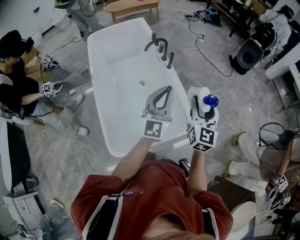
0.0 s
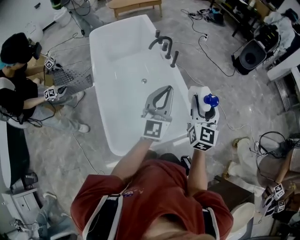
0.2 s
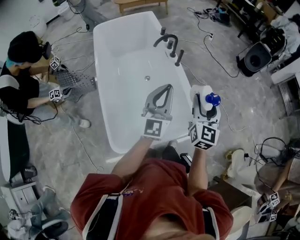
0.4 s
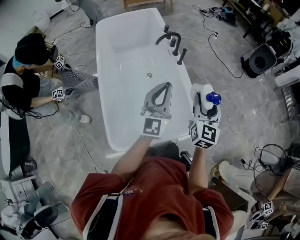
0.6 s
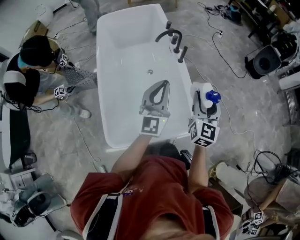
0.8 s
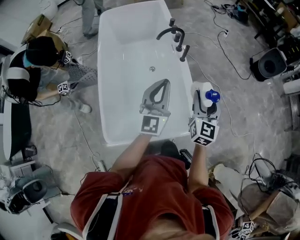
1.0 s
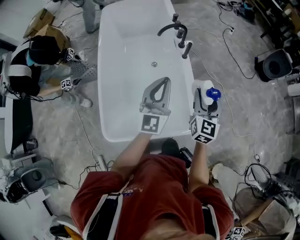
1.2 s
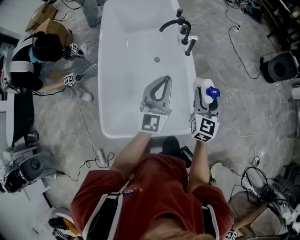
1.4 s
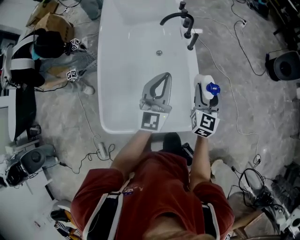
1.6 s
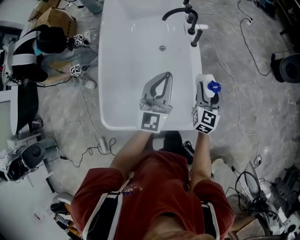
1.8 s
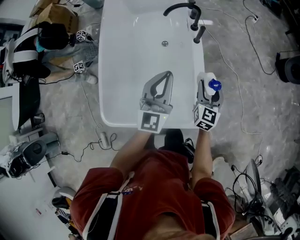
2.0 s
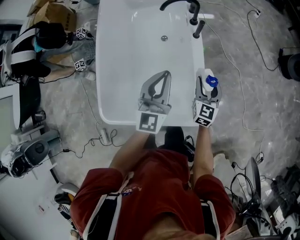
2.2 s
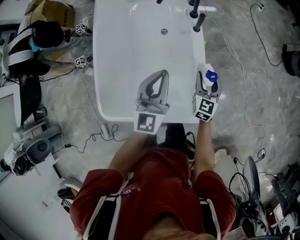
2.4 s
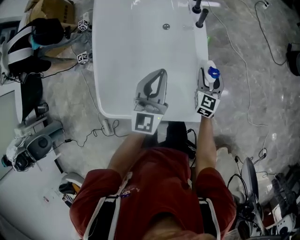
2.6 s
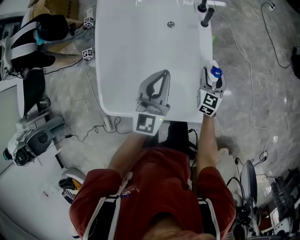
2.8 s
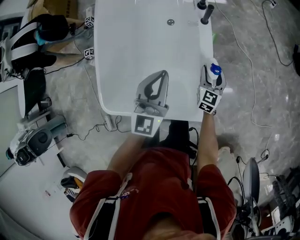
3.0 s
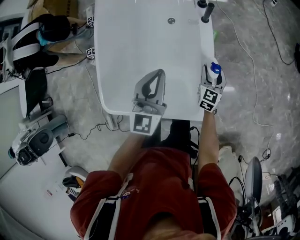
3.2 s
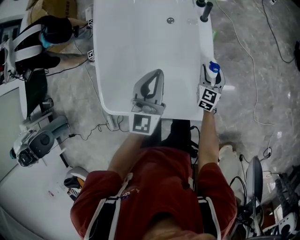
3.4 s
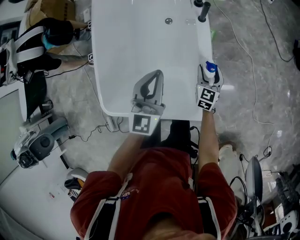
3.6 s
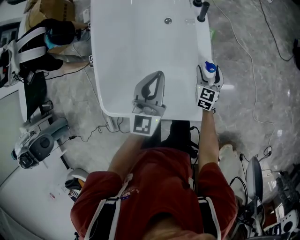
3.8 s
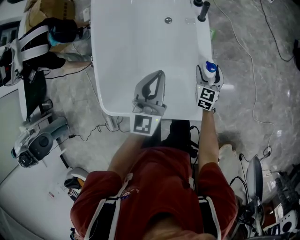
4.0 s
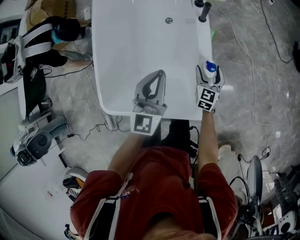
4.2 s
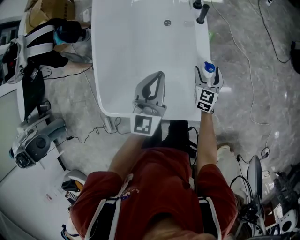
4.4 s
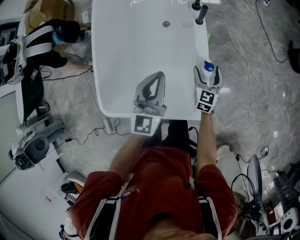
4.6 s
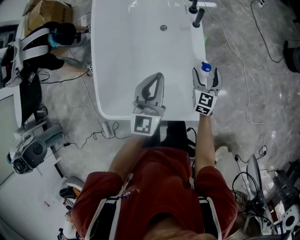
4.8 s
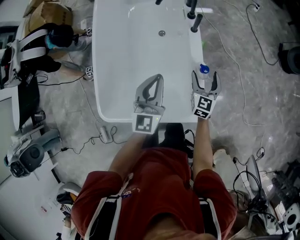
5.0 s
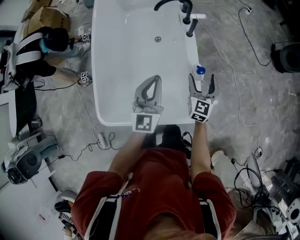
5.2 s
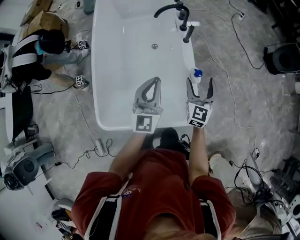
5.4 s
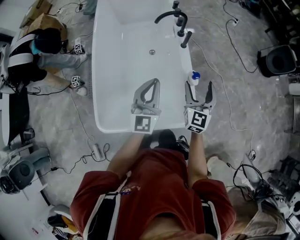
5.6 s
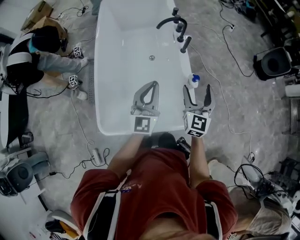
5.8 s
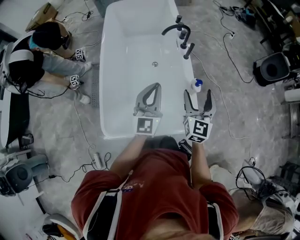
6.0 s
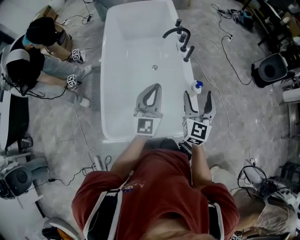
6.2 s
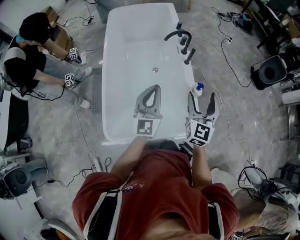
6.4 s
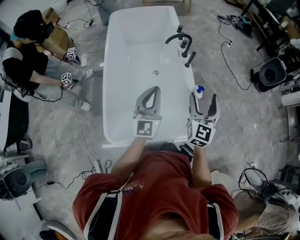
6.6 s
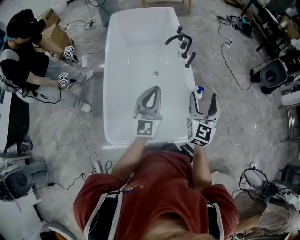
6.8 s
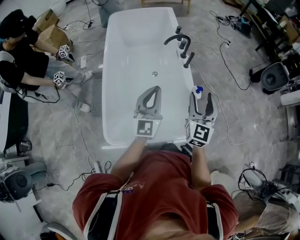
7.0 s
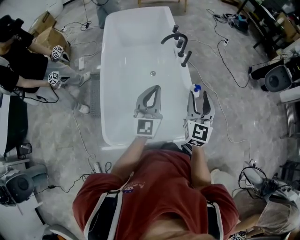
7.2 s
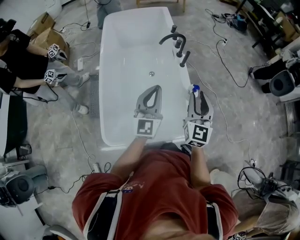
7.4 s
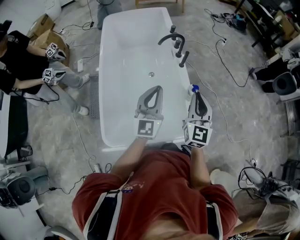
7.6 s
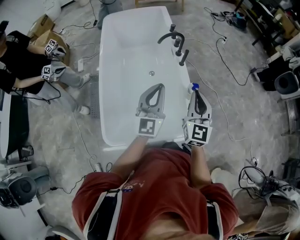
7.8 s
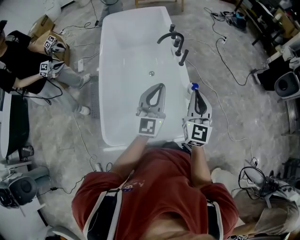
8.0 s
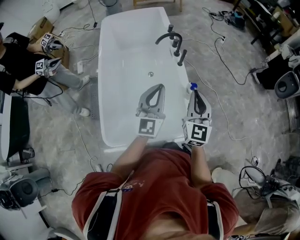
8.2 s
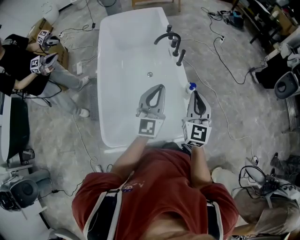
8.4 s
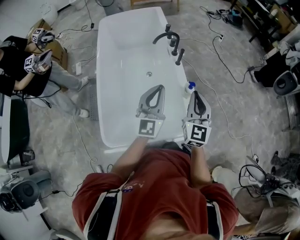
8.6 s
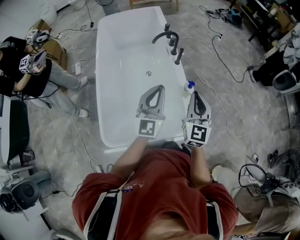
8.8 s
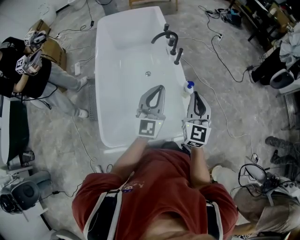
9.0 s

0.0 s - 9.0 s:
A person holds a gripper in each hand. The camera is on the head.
0.0 s - 1.6 s: The left gripper shifts approximately 15 cm forward and downward, and rotates some 20 degrees; the right gripper moves forward and downward, approximately 25 cm.
1.6 s - 3.0 s: The right gripper goes some 25 cm downward; the left gripper travels downward by approximately 10 cm.
3.0 s - 4.4 s: The grippers move only a little.
4.4 s - 6.0 s: The left gripper travels upward, to the left and backward by approximately 15 cm; the right gripper shifts some 35 cm upward and backward, and swivels about 20 degrees.
6.0 s - 7.6 s: The right gripper heads upward, covering some 5 cm, and closes up.
7.6 s - 9.0 s: The grippers make only small movements.

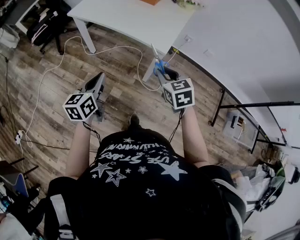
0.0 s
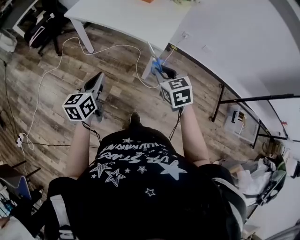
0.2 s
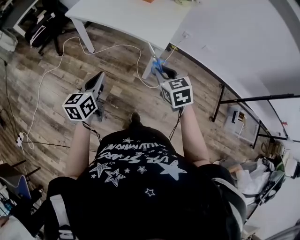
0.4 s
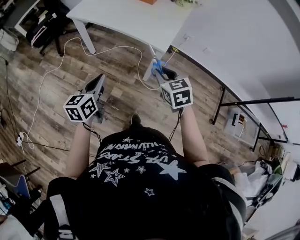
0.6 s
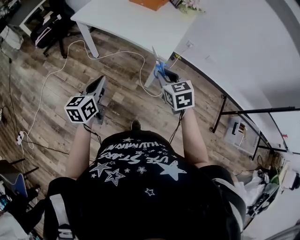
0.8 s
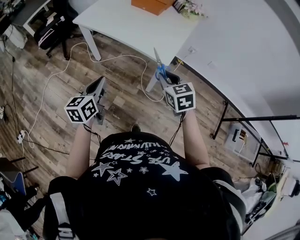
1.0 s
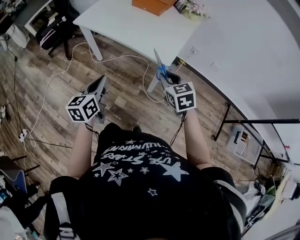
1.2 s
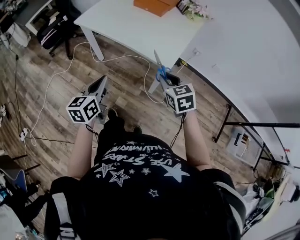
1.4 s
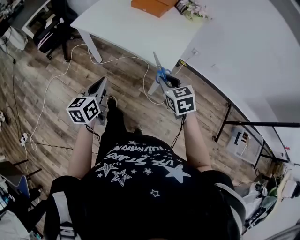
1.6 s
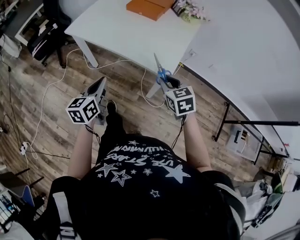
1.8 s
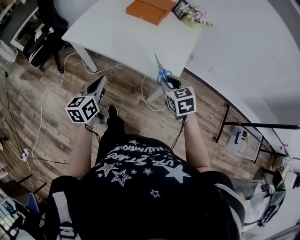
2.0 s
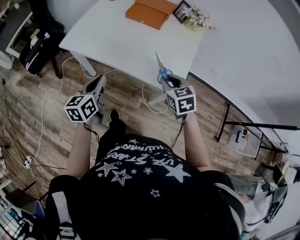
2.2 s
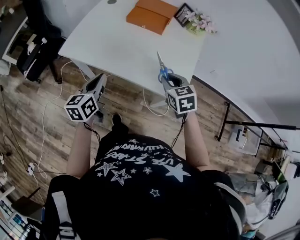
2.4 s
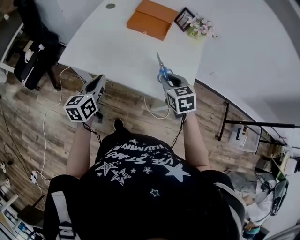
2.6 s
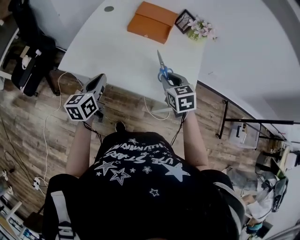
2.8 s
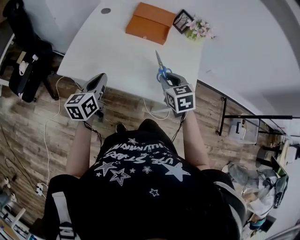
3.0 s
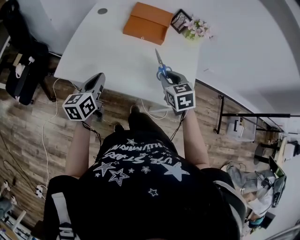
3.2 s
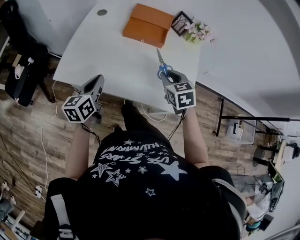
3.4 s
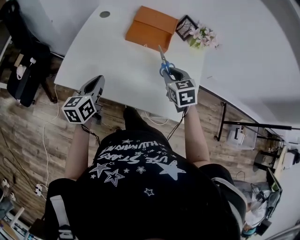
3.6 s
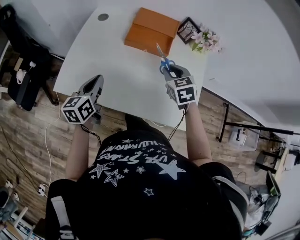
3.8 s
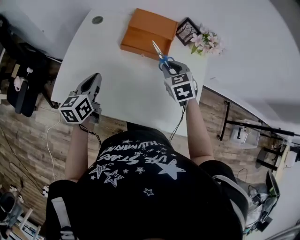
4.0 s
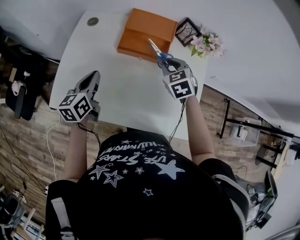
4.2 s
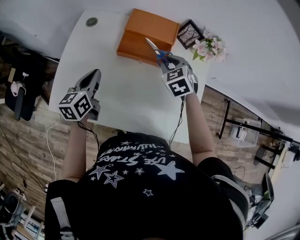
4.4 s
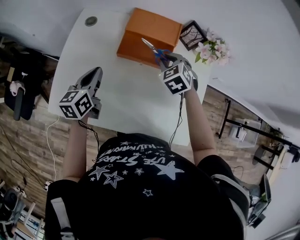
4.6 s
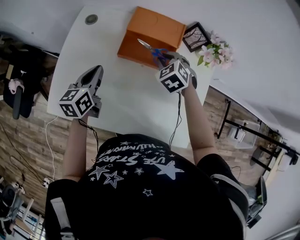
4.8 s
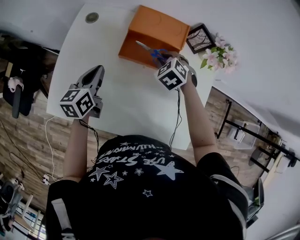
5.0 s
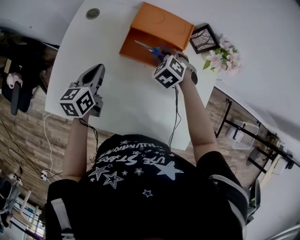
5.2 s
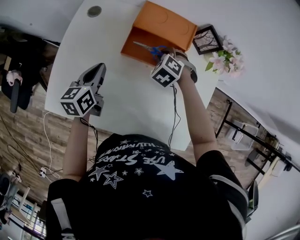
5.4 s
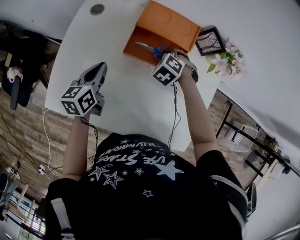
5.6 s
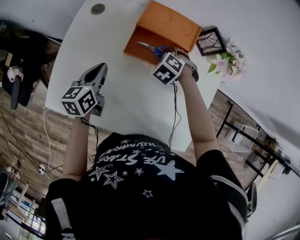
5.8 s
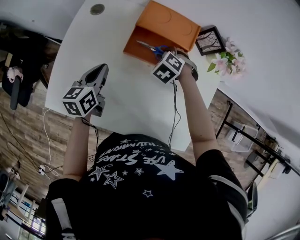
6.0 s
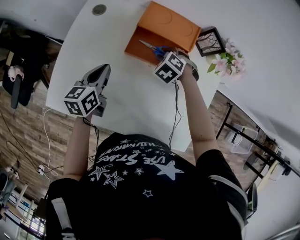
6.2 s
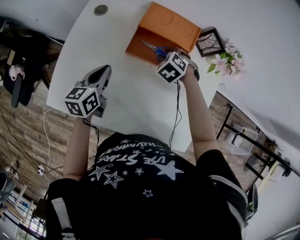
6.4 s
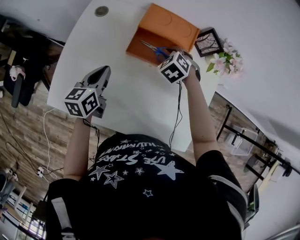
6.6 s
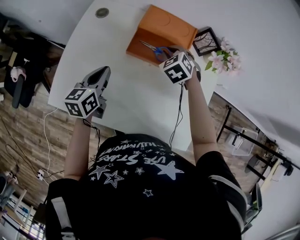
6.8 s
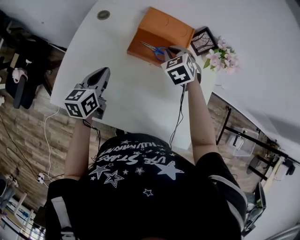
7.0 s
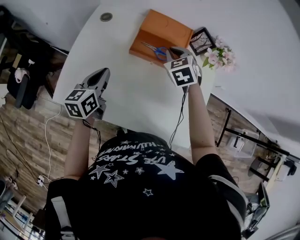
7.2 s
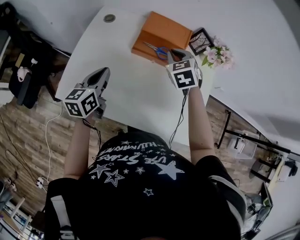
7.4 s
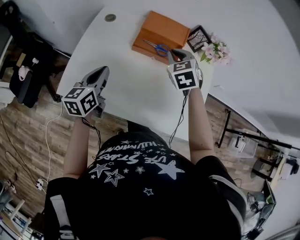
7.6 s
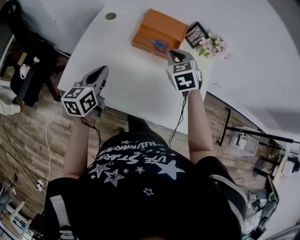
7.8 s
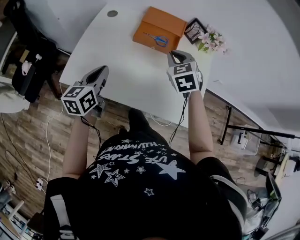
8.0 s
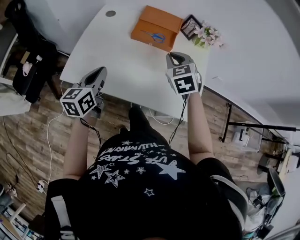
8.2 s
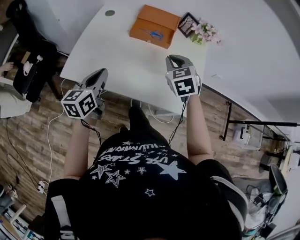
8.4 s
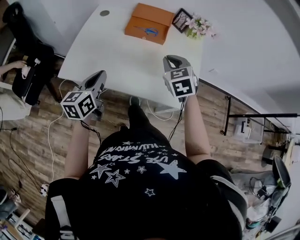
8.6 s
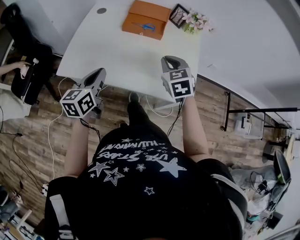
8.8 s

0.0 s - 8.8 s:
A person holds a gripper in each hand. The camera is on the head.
0.0 s - 1.4 s: Both grippers travel together forward, some 10 cm.
1.4 s - 3.0 s: The two grippers go roughly 40 cm forward and to the left. The right gripper swivels about 20 degrees.
3.0 s - 4.4 s: Both grippers move forward, approximately 25 cm.
4.4 s - 5.8 s: The right gripper is displaced downward, forward and to the left by some 15 cm, and rotates approximately 30 degrees, while the left gripper shifts some 10 cm downward and forward.
5.8 s - 7.4 s: The left gripper travels backward and upward by approximately 15 cm. Meanwhile the right gripper goes roughly 15 cm upward and backward, and turns by some 40 degrees.
7.4 s - 8.8 s: The grippers both shift backward by about 25 cm.

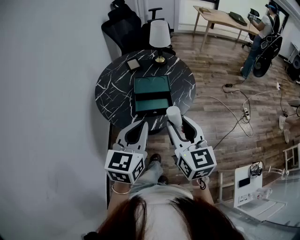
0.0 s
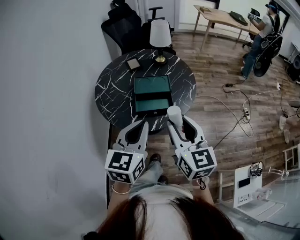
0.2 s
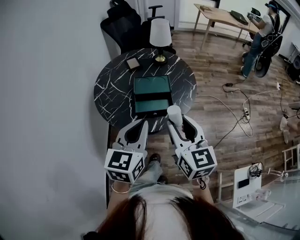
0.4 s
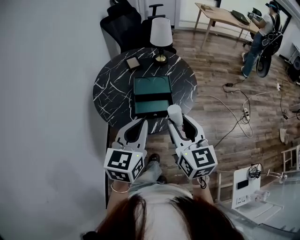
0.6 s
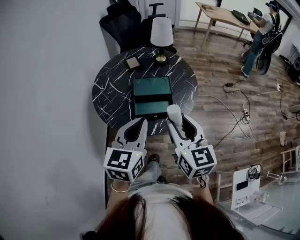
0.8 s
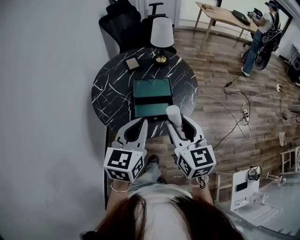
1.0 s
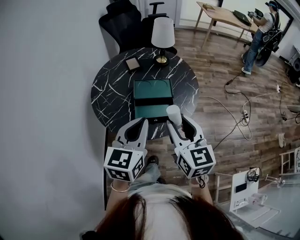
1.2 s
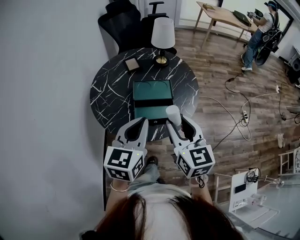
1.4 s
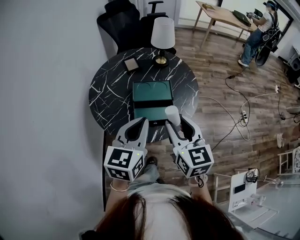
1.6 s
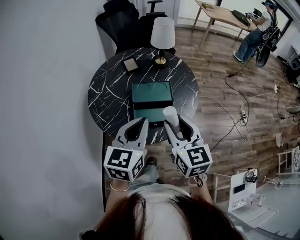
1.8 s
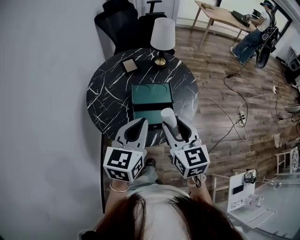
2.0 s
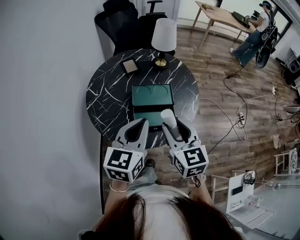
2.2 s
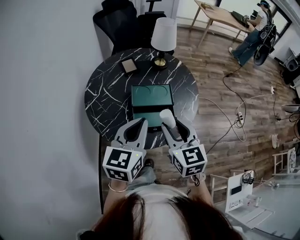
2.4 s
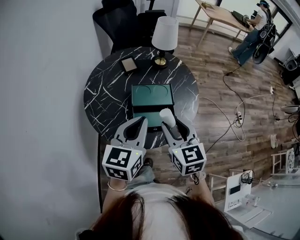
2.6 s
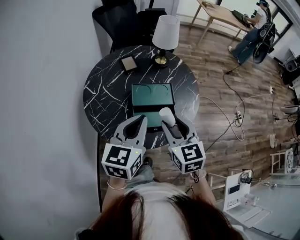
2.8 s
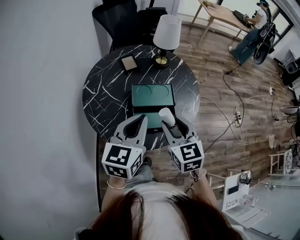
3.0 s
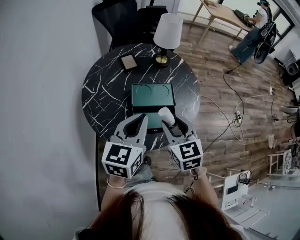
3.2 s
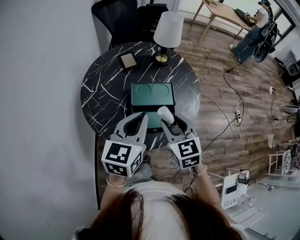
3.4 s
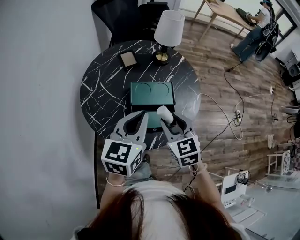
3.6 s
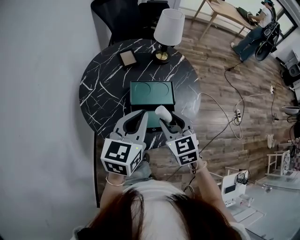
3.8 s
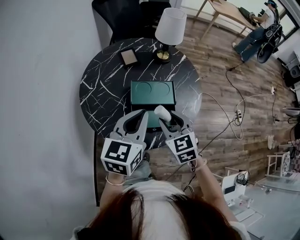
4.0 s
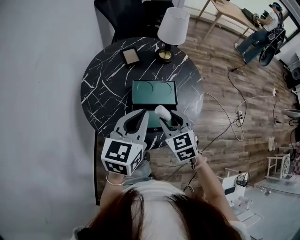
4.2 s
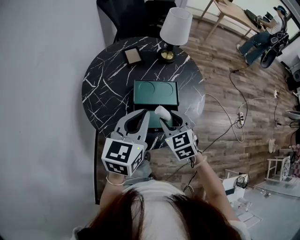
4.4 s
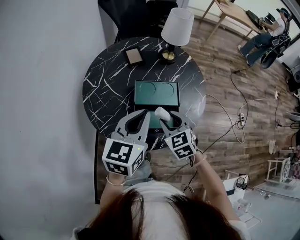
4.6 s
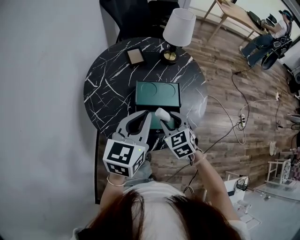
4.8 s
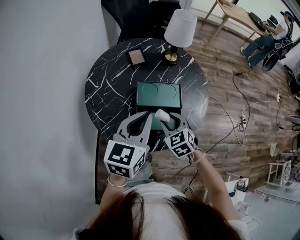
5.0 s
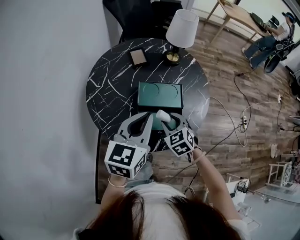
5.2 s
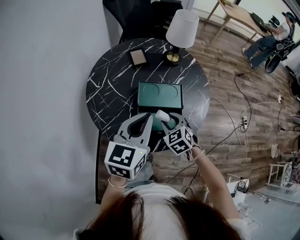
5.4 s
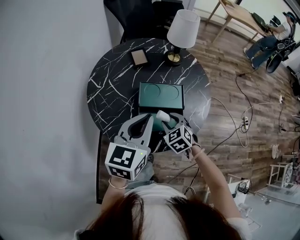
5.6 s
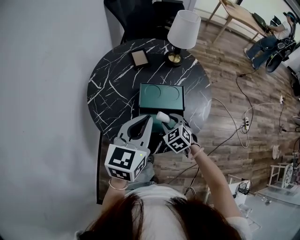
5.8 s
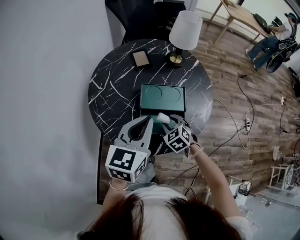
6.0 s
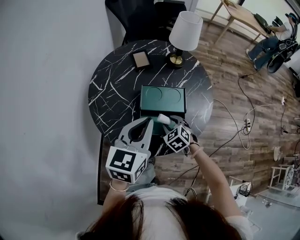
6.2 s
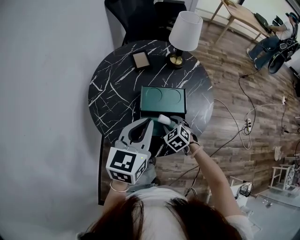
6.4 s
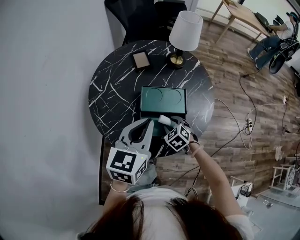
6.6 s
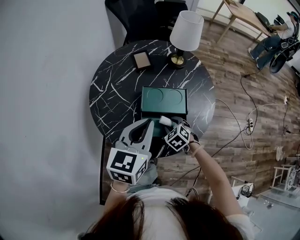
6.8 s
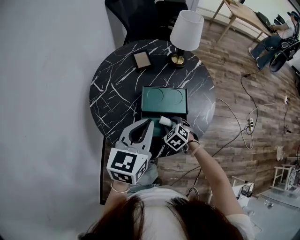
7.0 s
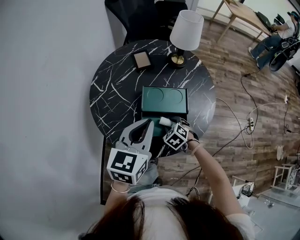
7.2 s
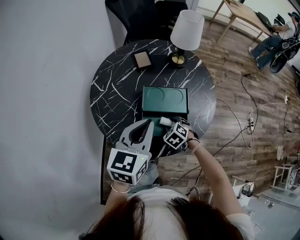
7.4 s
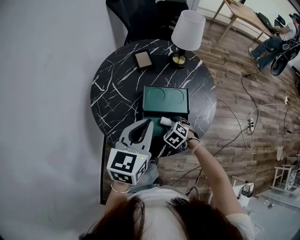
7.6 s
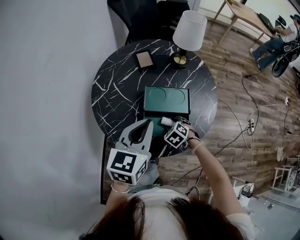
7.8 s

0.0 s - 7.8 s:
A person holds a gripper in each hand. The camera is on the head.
0.0 s - 1.6 s: Both grippers move forward, some 10 cm.
1.6 s - 3.2 s: The right gripper is displaced forward and downward by approximately 10 cm. The left gripper shifts roughly 10 cm forward.
3.2 s - 4.6 s: The right gripper moves downward, roughly 10 cm, and turns by some 20 degrees.
4.6 s - 6.2 s: The right gripper moves downward, approximately 10 cm.
6.2 s - 7.8 s: The right gripper heads downward, covering roughly 5 cm.
